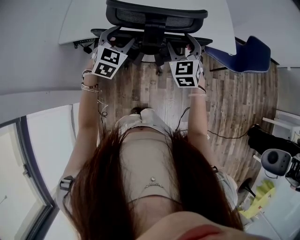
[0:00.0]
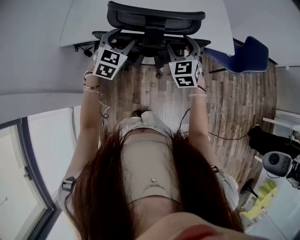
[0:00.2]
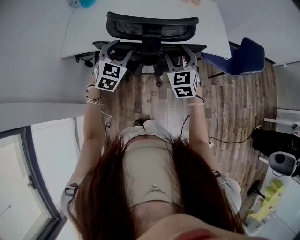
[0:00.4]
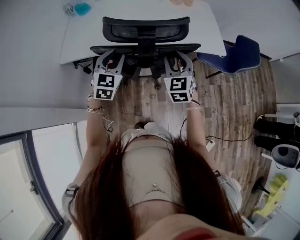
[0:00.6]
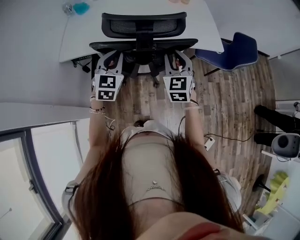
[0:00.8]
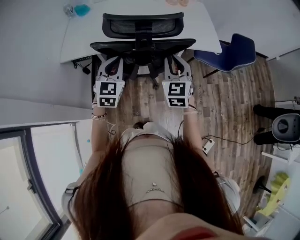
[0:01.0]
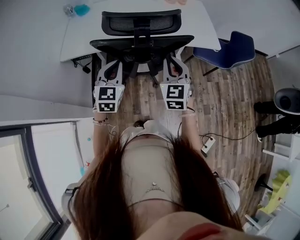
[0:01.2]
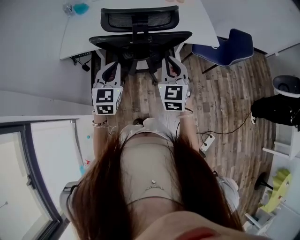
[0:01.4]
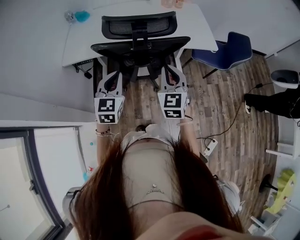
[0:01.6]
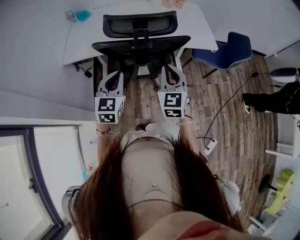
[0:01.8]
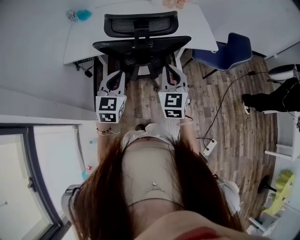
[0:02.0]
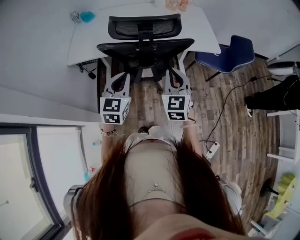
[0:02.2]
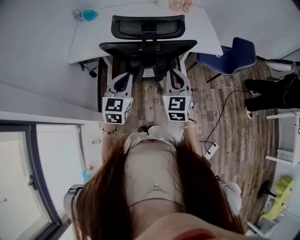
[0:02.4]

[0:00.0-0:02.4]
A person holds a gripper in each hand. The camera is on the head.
0:00.0 to 0:01.2: The left gripper travels backward by about 15 cm, and closes. Meanwhile the right gripper moves backward and upward, some 15 cm, and closes up.
0:01.2 to 0:02.4: The left gripper travels backward by about 5 cm.

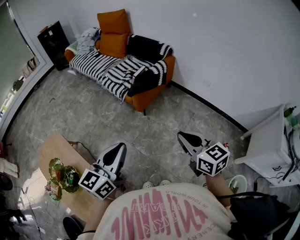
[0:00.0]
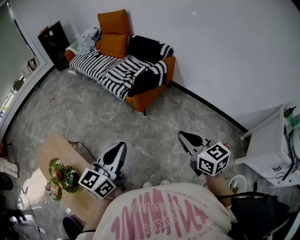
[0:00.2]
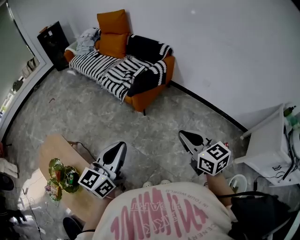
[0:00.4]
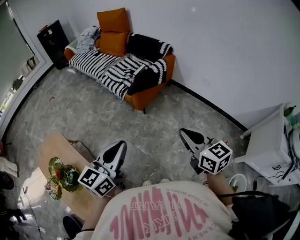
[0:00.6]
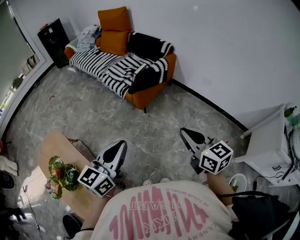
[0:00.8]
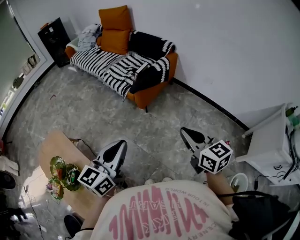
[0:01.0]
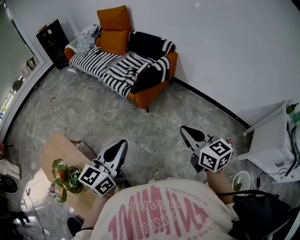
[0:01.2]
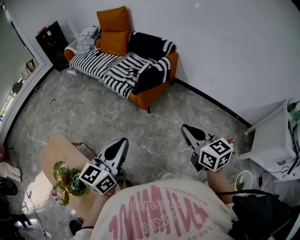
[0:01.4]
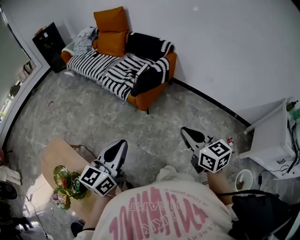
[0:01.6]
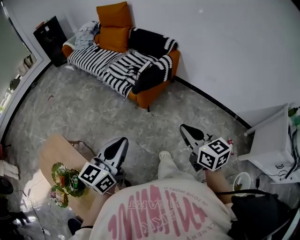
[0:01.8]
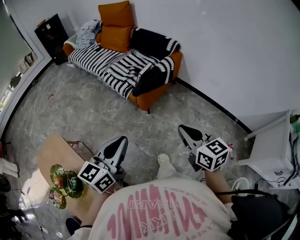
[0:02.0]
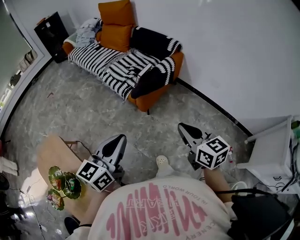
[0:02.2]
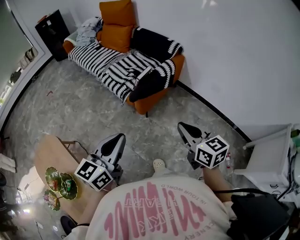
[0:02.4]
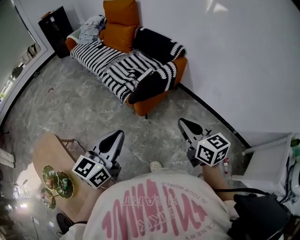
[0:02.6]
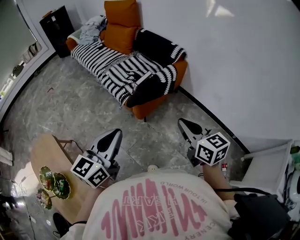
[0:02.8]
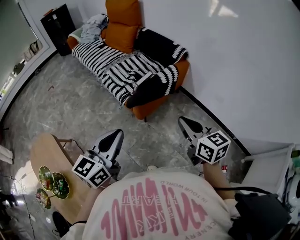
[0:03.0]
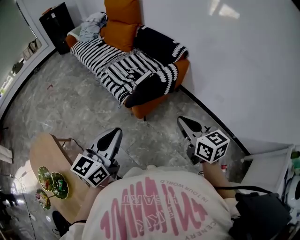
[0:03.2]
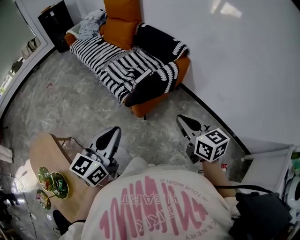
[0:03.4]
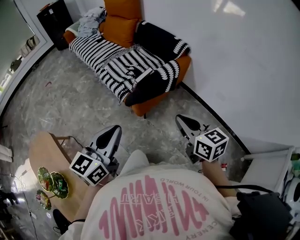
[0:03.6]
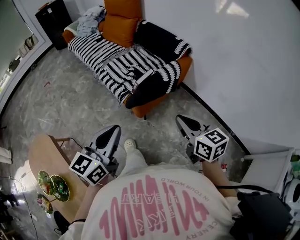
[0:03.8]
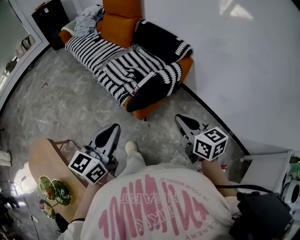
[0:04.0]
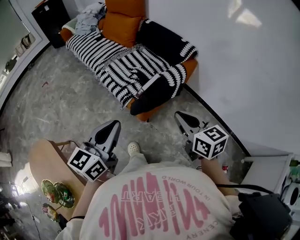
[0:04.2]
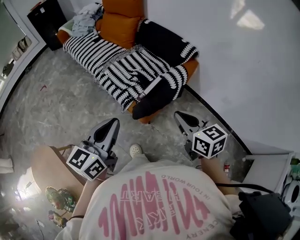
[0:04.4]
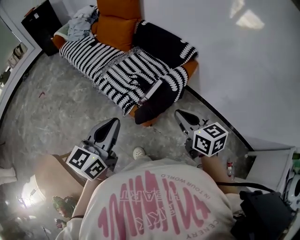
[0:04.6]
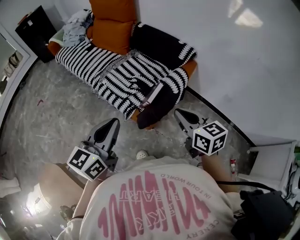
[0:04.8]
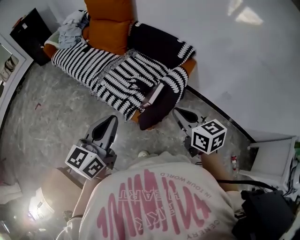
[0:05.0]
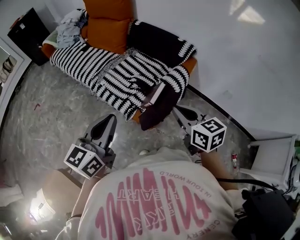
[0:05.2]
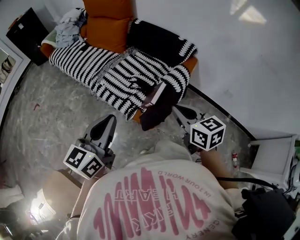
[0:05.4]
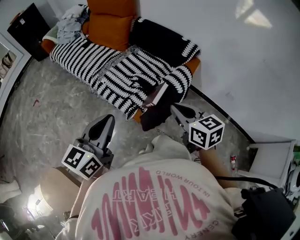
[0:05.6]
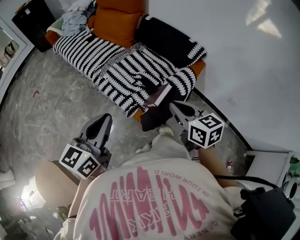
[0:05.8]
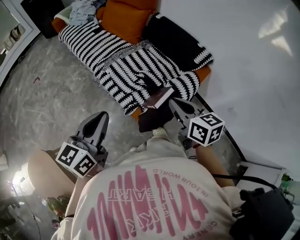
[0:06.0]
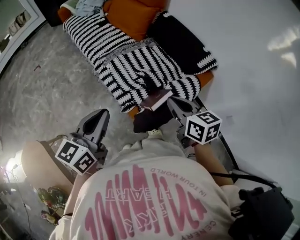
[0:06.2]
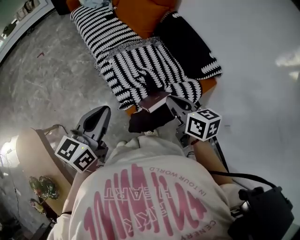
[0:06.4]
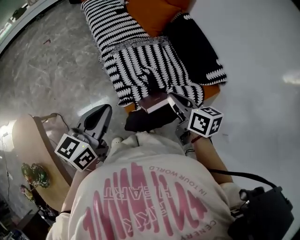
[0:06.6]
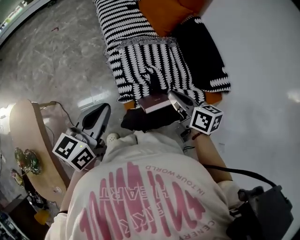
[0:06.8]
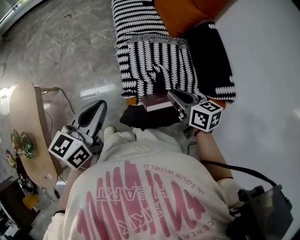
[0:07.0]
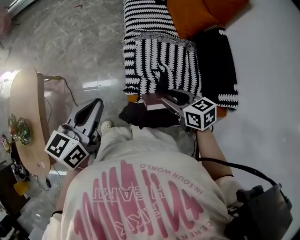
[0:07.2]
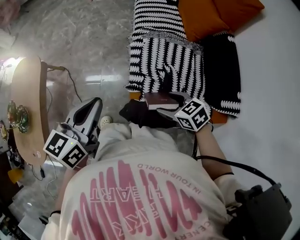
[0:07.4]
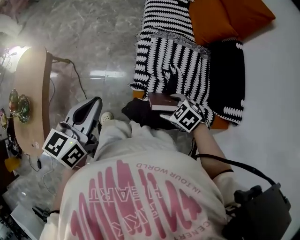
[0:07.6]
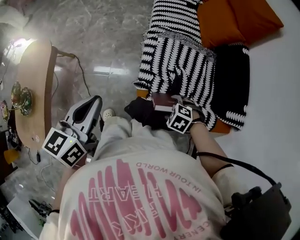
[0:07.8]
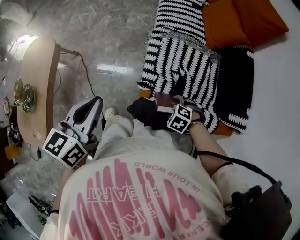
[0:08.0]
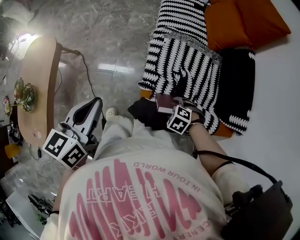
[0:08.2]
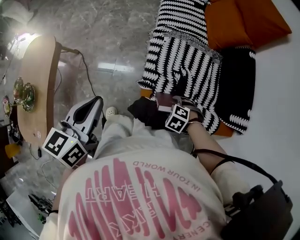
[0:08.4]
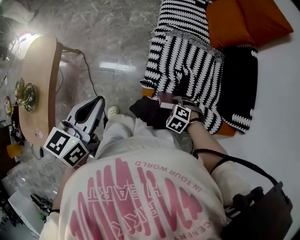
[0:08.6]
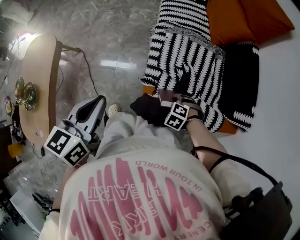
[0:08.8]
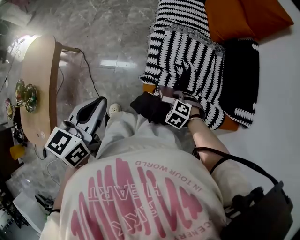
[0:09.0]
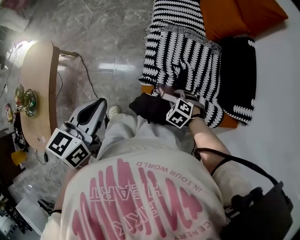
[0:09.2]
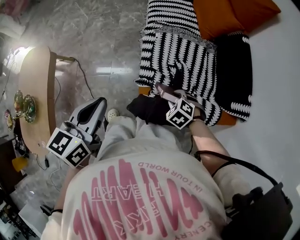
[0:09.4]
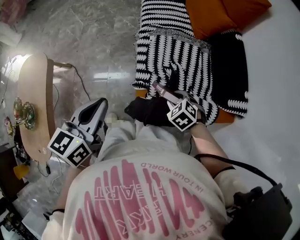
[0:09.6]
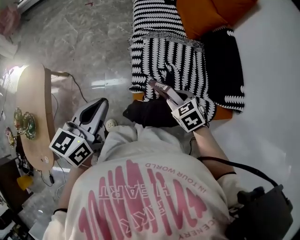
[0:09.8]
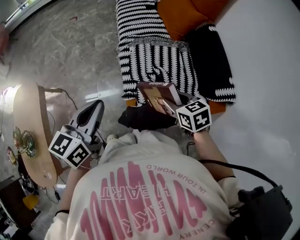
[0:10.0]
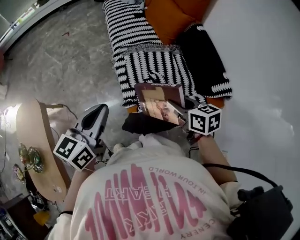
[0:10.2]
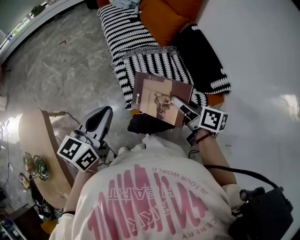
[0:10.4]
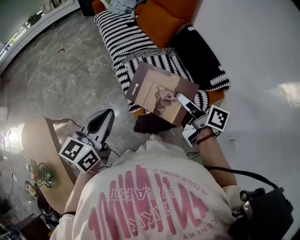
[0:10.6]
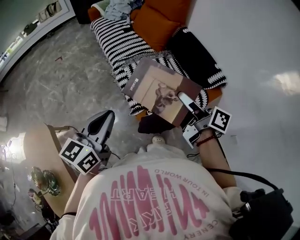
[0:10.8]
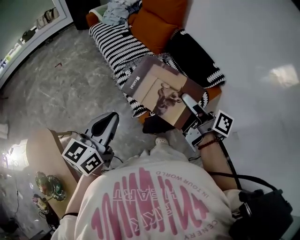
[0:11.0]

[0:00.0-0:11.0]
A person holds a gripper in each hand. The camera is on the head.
0:00.0 to 0:01.6: The left gripper changes place by about 5 cm.
0:01.6 to 0:03.2: The left gripper heads forward and to the right, covering about 20 cm. Meanwhile the right gripper heads forward, covering about 25 cm.
0:03.2 to 0:04.8: Both grippers move forward and to the left, about 20 cm.
0:04.8 to 0:06.2: The right gripper travels forward by some 15 cm. The left gripper is displaced forward by about 10 cm.
0:06.2 to 0:07.8: The right gripper heads downward, covering about 25 cm, tips its fingers downward by about 50 degrees, and opens. The left gripper changes place by roughly 5 cm, and turns by about 40 degrees.
0:07.8 to 0:09.4: The right gripper closes up.
0:09.4 to 0:11.0: The right gripper goes roughly 35 cm upward, and tips its fingers upward by some 80 degrees. The left gripper travels upward by approximately 5 cm, and rotates about 40 degrees.

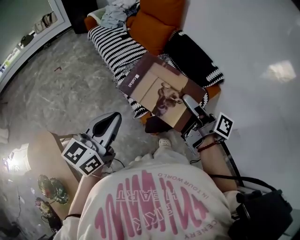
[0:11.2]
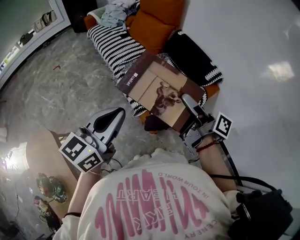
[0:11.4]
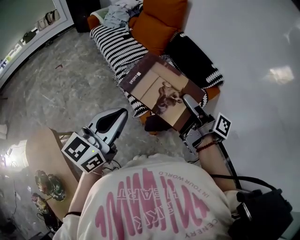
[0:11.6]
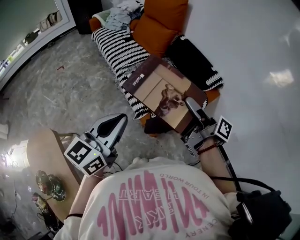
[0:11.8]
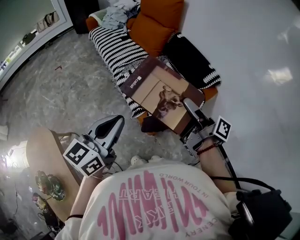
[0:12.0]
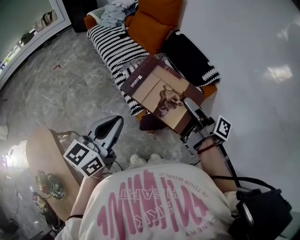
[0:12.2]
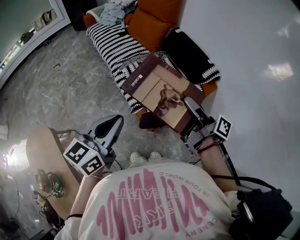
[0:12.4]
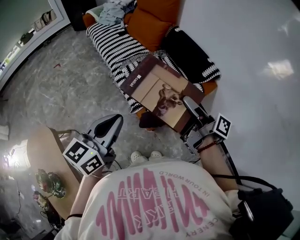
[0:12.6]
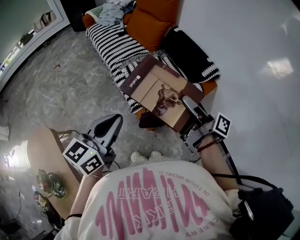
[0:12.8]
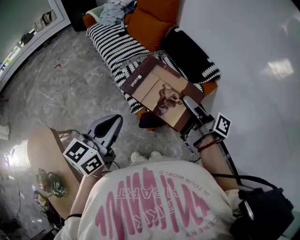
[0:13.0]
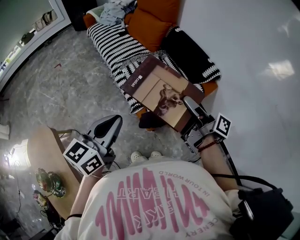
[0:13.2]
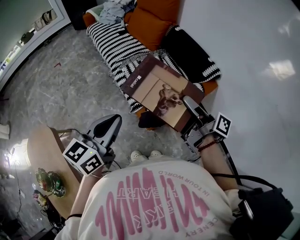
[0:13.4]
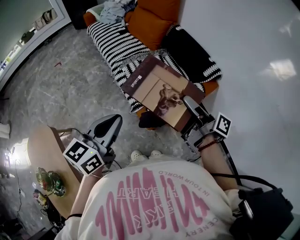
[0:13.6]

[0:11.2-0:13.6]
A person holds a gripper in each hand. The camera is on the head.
0:11.2 to 0:13.6: The grippers make only small movements.

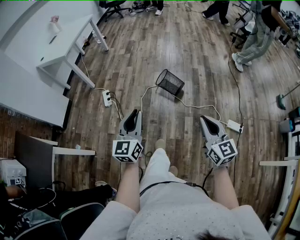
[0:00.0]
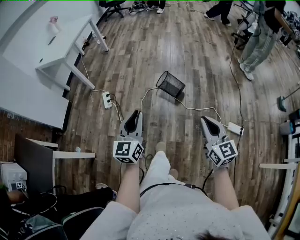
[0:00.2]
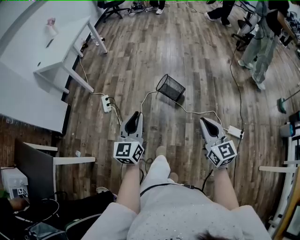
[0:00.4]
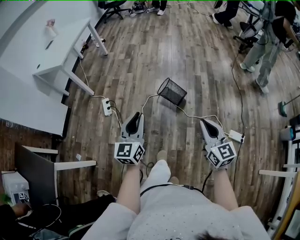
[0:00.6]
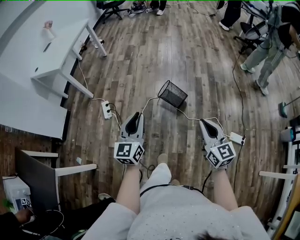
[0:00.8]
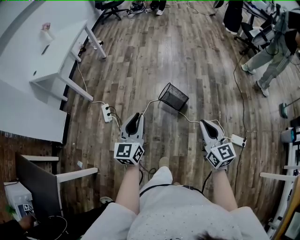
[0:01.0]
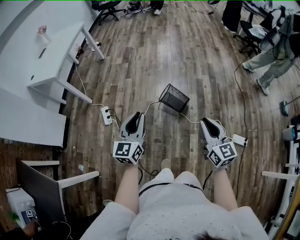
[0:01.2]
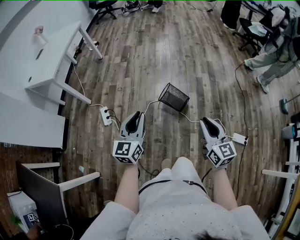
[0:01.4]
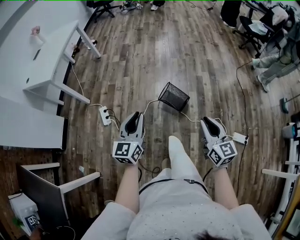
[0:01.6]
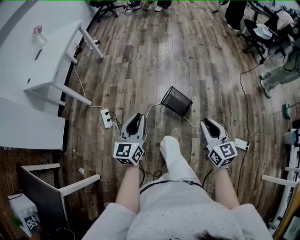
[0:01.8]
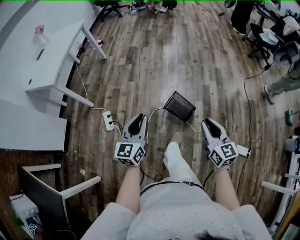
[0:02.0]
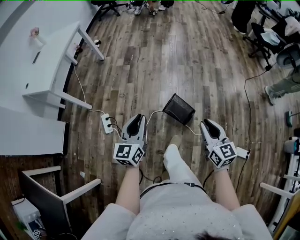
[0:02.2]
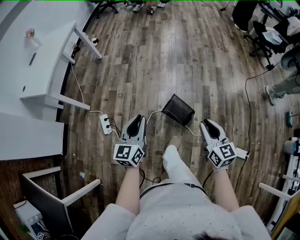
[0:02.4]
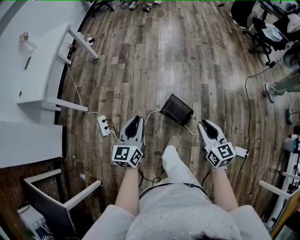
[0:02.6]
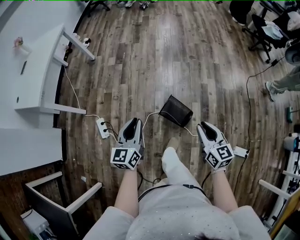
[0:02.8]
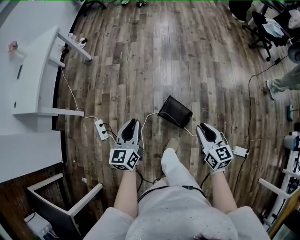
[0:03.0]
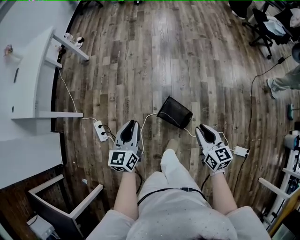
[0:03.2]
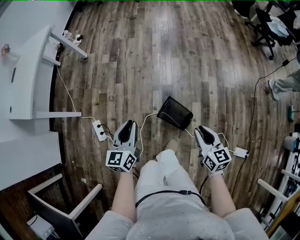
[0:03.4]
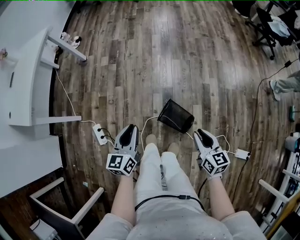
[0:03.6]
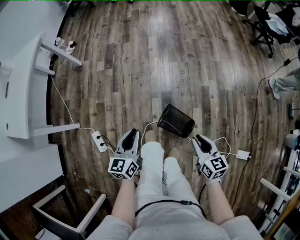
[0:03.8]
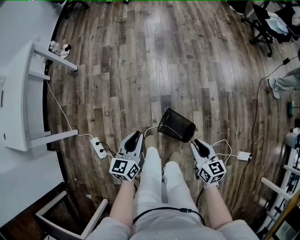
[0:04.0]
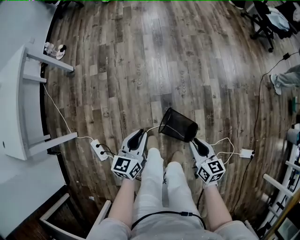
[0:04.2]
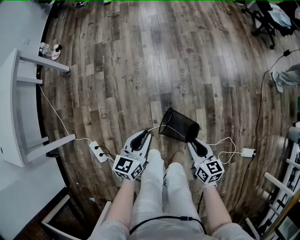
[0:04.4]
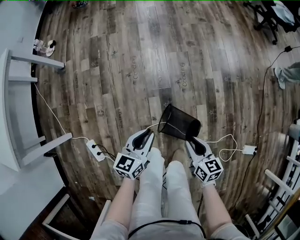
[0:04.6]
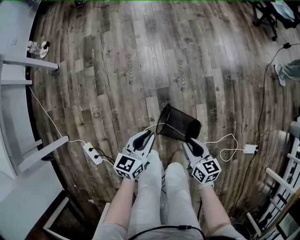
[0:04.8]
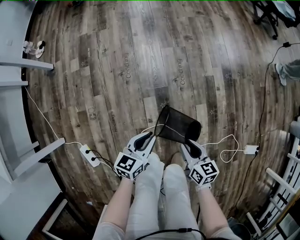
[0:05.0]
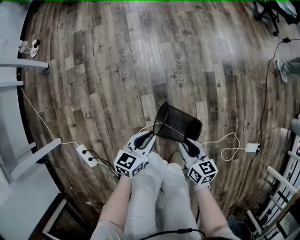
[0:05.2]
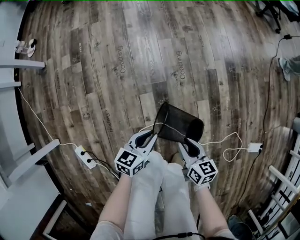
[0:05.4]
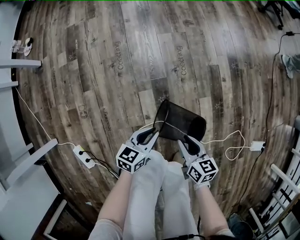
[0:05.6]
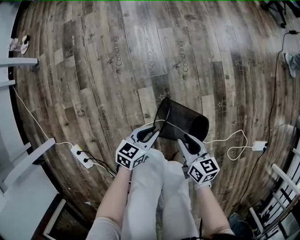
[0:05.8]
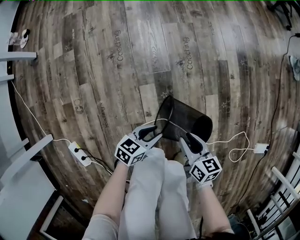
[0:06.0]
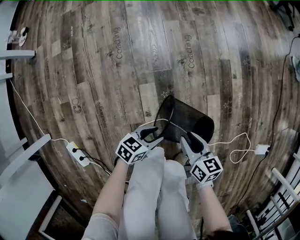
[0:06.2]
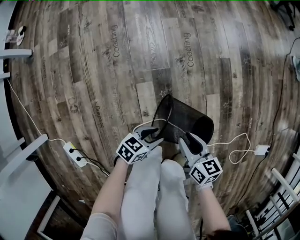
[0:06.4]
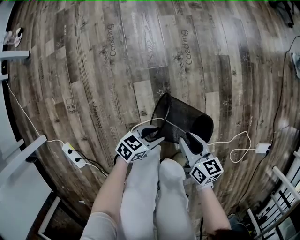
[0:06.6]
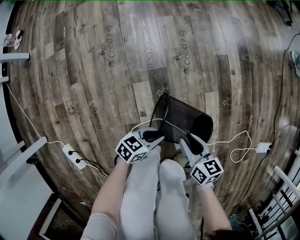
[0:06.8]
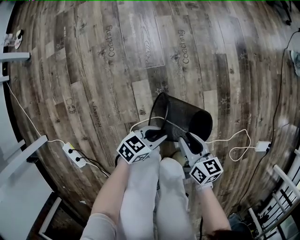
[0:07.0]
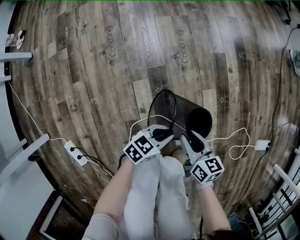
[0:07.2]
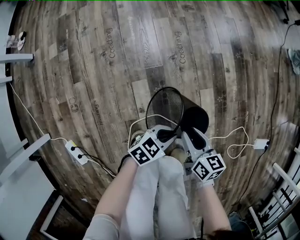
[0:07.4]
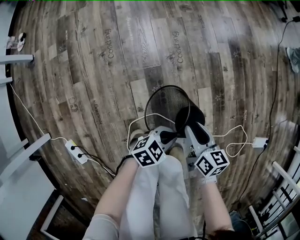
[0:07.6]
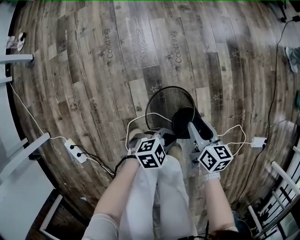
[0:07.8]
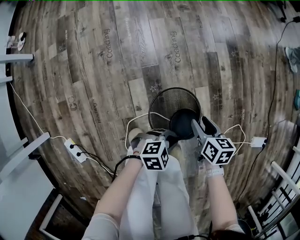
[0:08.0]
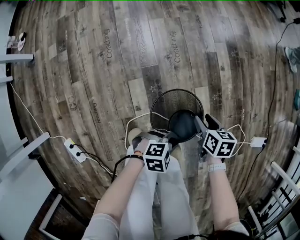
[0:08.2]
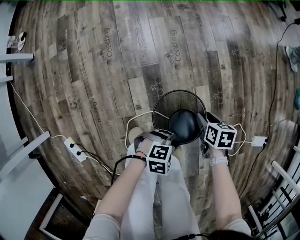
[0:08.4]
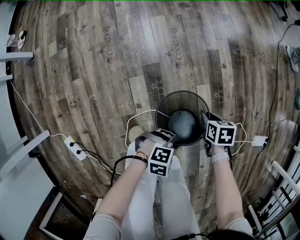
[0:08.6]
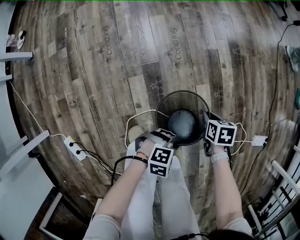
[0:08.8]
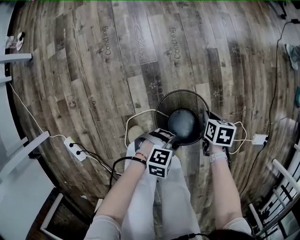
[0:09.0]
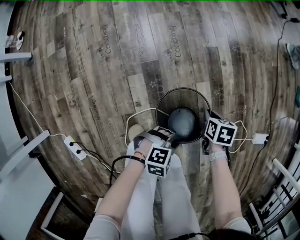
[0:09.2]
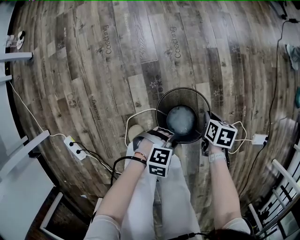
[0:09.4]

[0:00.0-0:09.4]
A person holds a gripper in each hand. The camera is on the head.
0:00.0 to 0:01.6: The two grippers go roughly 30 cm forward.
0:01.6 to 0:03.2: The right gripper goes some 35 cm forward and downward, while the left gripper shifts approximately 30 cm forward.
0:03.2 to 0:04.8: Both grippers travel together downward and forward, approximately 35 cm. The left gripper rotates some 30 degrees, while the right gripper swivels some 20 degrees.
0:04.8 to 0:06.2: Both grippers travel together downward, some 25 cm. The left gripper rotates approximately 40 degrees, and opens its fingers.
0:06.2 to 0:07.8: The right gripper travels to the right and forward by about 10 cm. The left gripper travels to the right and upward by approximately 15 cm, rotates about 40 degrees, and closes up.
0:07.8 to 0:09.4: The left gripper rotates about 30 degrees, while the right gripper shifts by approximately 10 cm, angles its fingers downward, by about 30 degrees, and closes.
